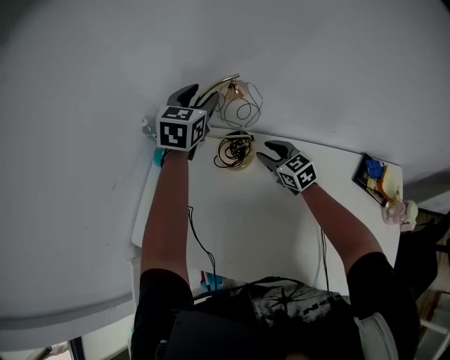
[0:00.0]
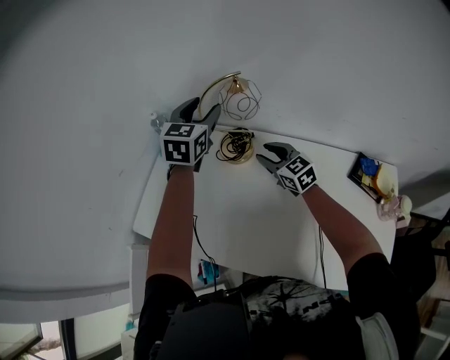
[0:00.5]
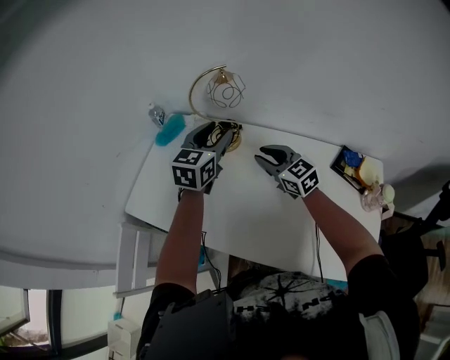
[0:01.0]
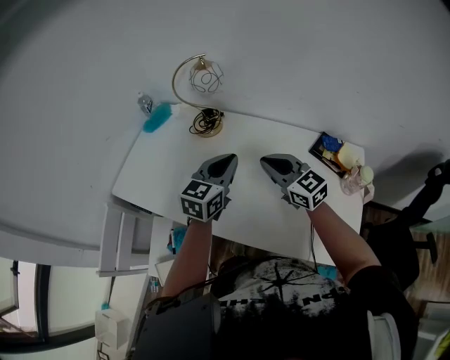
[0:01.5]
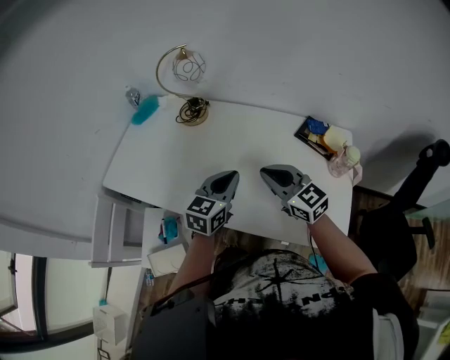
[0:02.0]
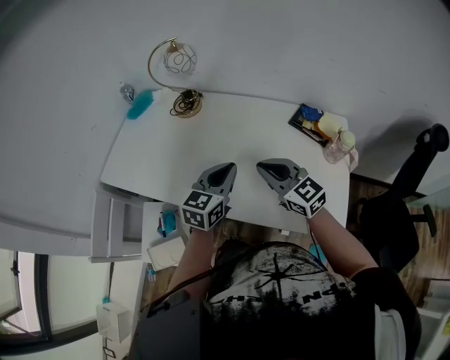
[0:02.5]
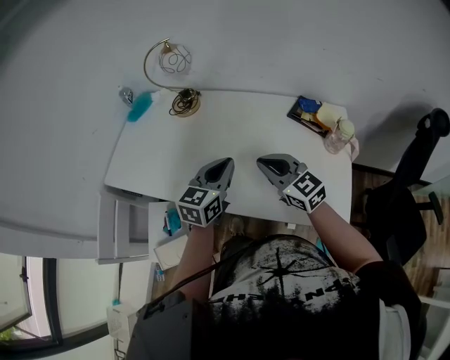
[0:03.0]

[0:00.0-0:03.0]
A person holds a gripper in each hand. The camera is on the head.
0:00.0 to 0:01.5: The left gripper heads backward, covering approximately 40 cm, turns by some 20 degrees, and closes up; the right gripper shifts about 30 cm backward and upward, and closes.
0:01.5 to 0:03.0: Both grippers move backward and to the right, roughly 15 cm.

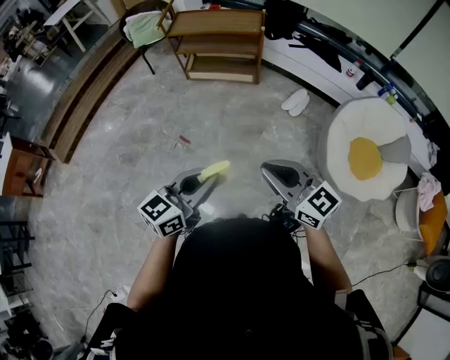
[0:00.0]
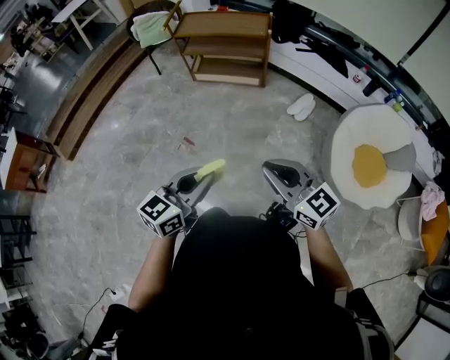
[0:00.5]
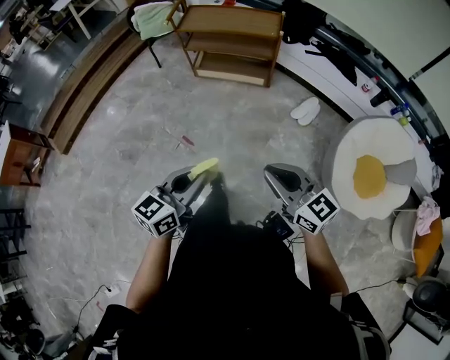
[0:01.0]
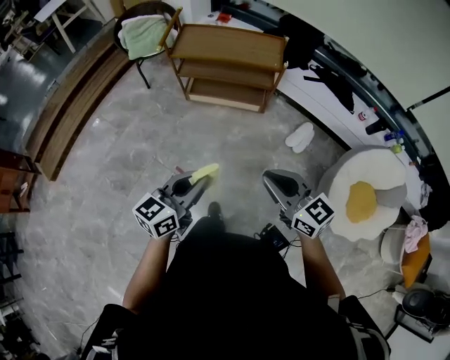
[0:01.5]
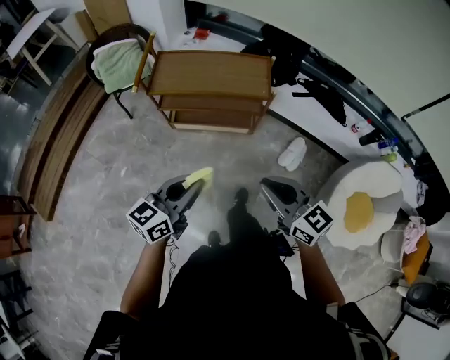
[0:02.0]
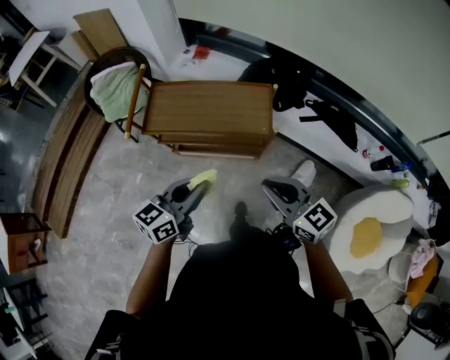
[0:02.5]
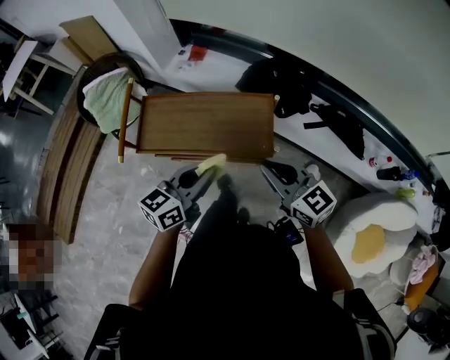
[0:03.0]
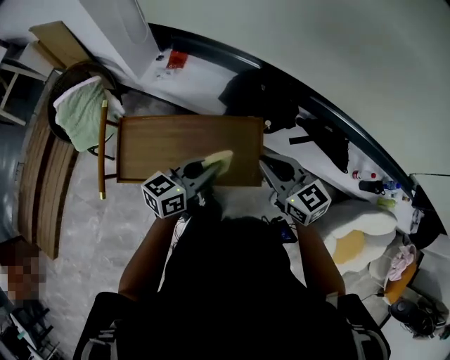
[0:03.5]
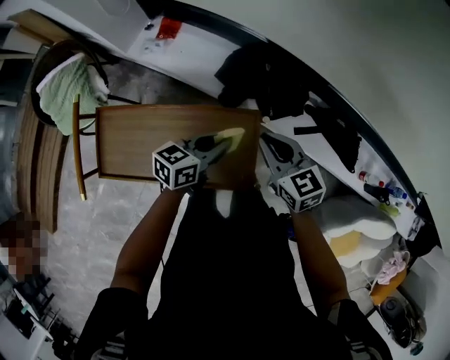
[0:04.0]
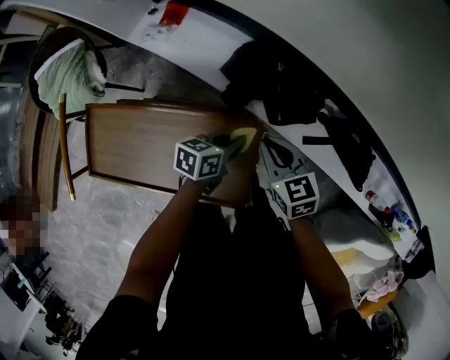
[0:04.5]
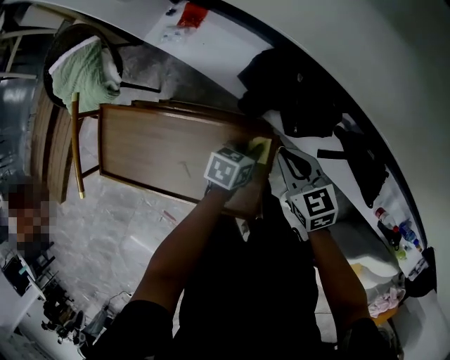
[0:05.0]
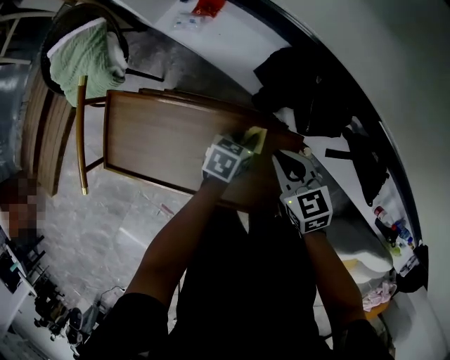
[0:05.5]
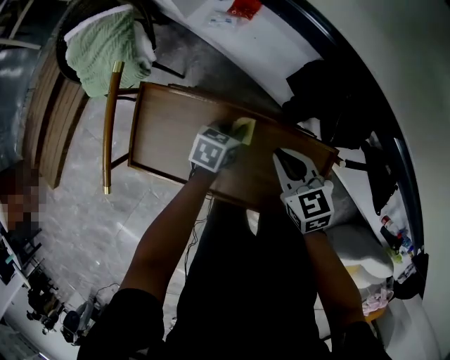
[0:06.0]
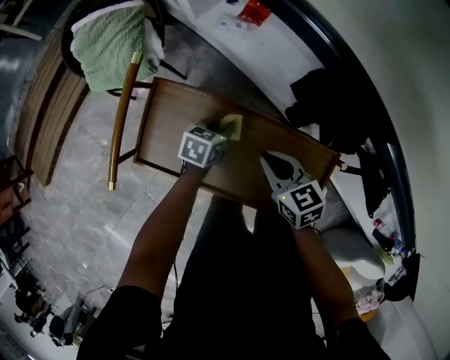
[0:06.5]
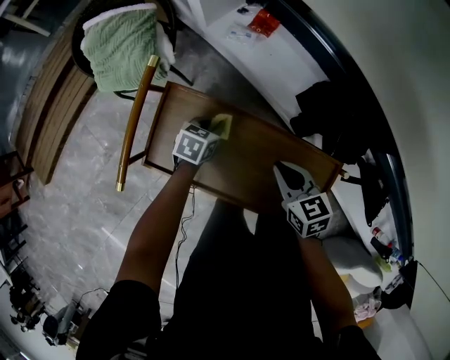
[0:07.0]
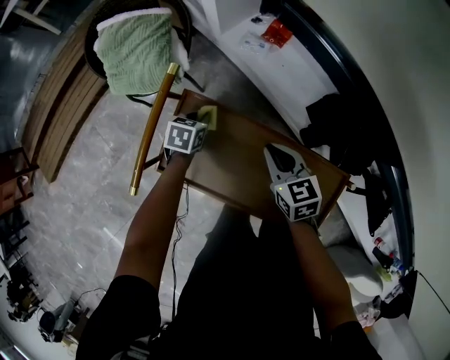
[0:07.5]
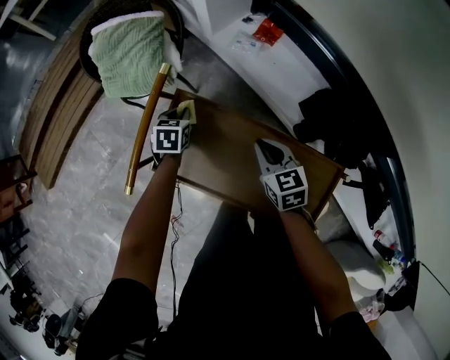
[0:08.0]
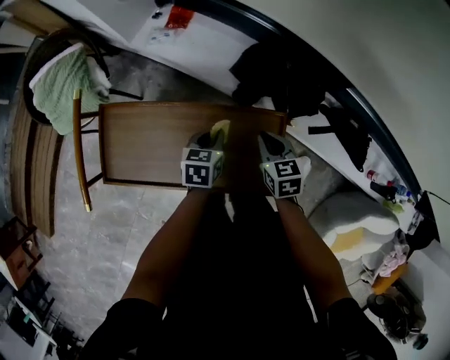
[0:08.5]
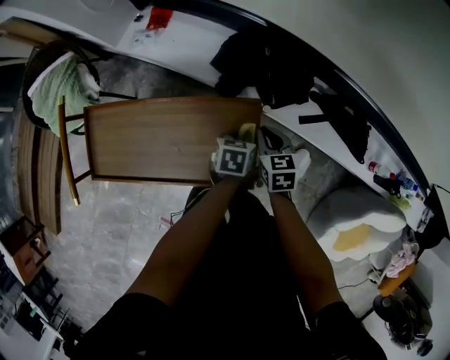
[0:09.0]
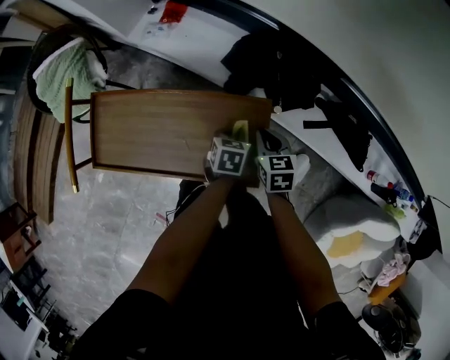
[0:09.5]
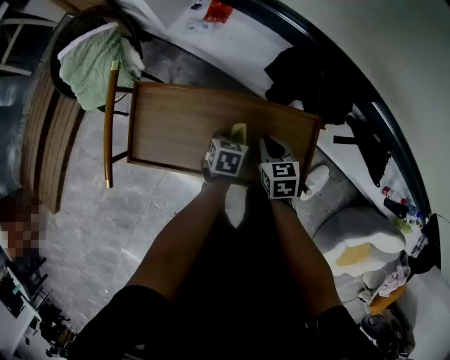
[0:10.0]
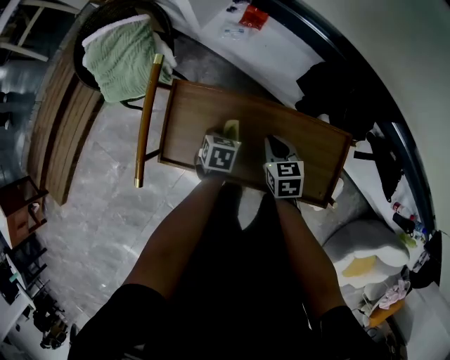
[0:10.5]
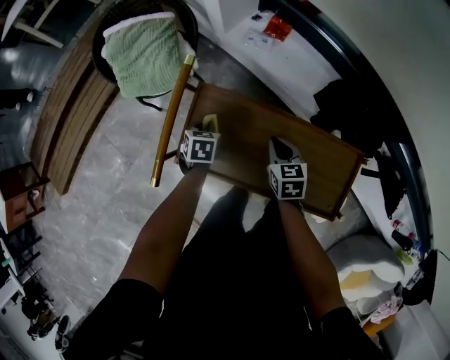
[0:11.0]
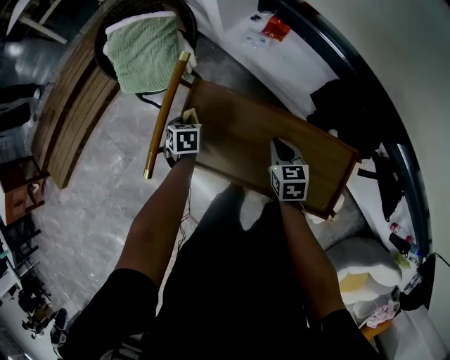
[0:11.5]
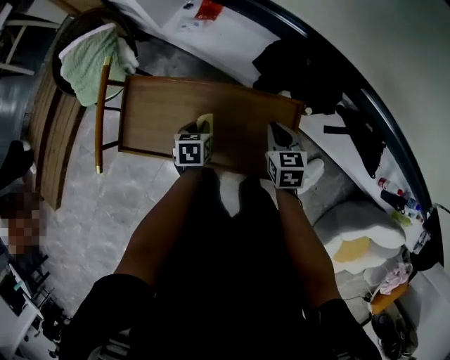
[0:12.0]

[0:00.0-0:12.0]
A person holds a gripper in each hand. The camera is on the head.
0:00.0 to 0:02.0: The two grippers travel together, forward, approximately 50 cm.
0:02.0 to 0:04.0: Both grippers are carried forward, about 60 cm. The left gripper turns by about 20 degrees.
0:04.0 to 0:06.0: Both grippers travel together to the left and downward, about 25 cm. The left gripper swivels approximately 30 degrees.
0:06.0 to 0:08.0: The left gripper goes roughly 30 cm to the left, and swivels about 30 degrees, while the right gripper moves to the left, roughly 15 cm.
0:08.0 to 0:10.0: The left gripper turns by some 20 degrees. The right gripper swivels approximately 20 degrees.

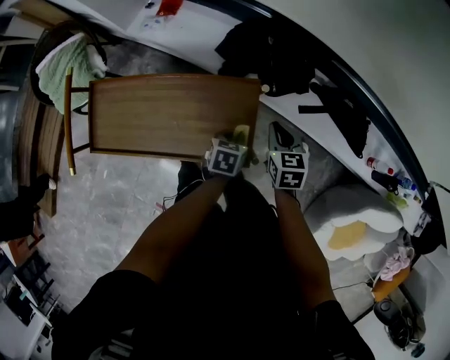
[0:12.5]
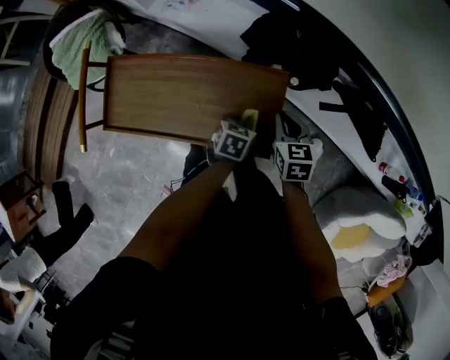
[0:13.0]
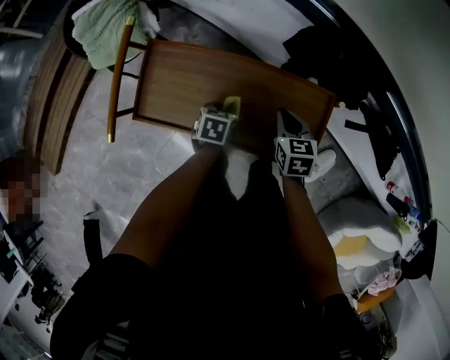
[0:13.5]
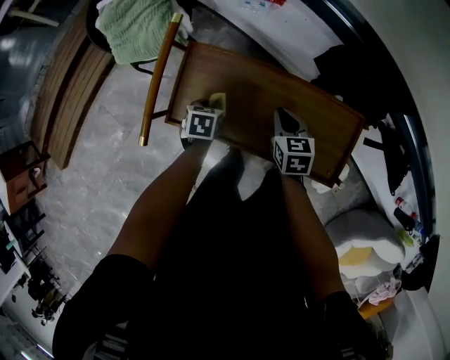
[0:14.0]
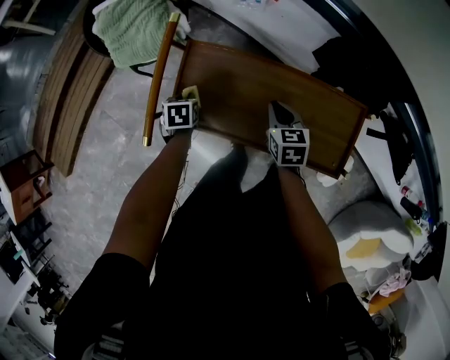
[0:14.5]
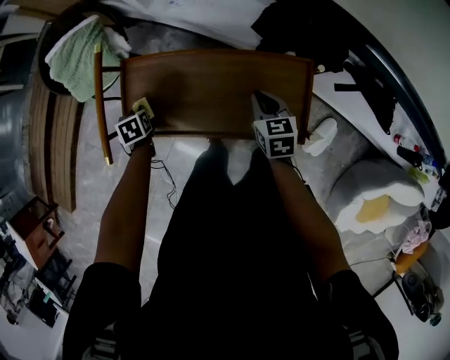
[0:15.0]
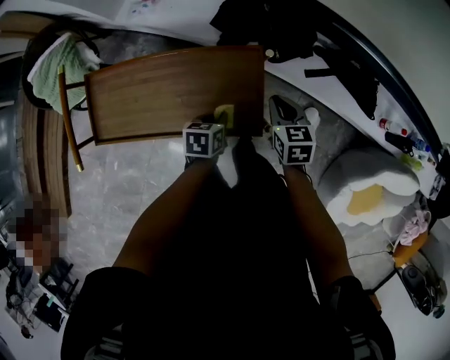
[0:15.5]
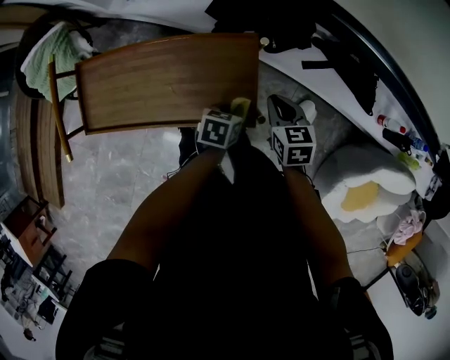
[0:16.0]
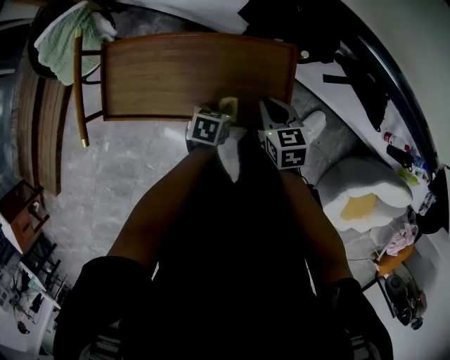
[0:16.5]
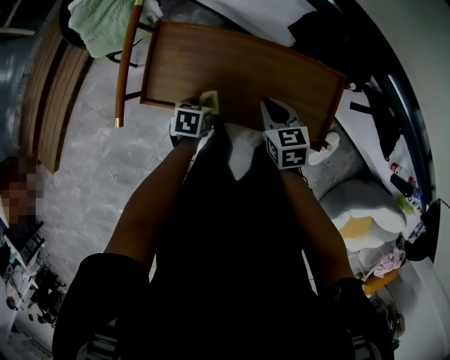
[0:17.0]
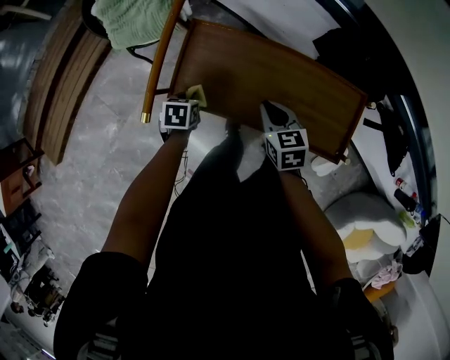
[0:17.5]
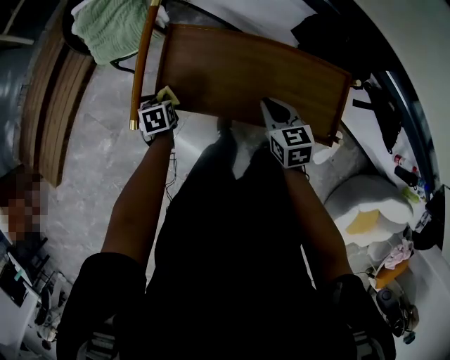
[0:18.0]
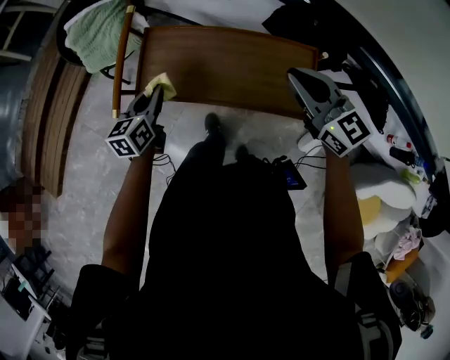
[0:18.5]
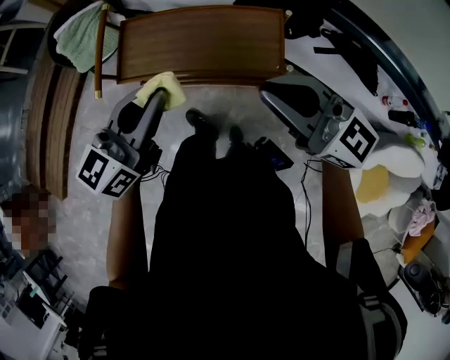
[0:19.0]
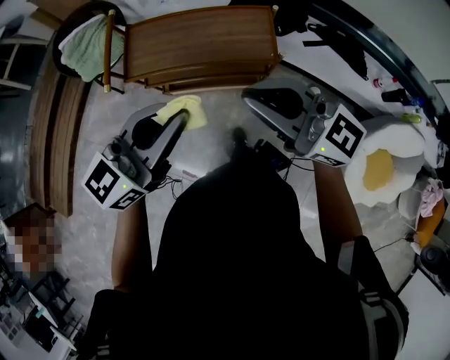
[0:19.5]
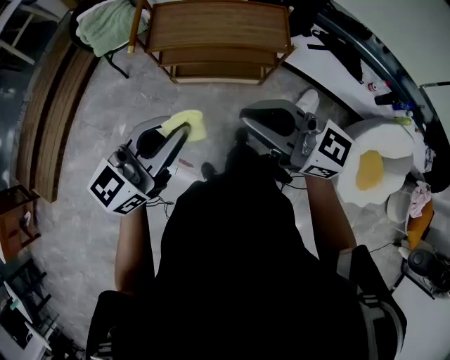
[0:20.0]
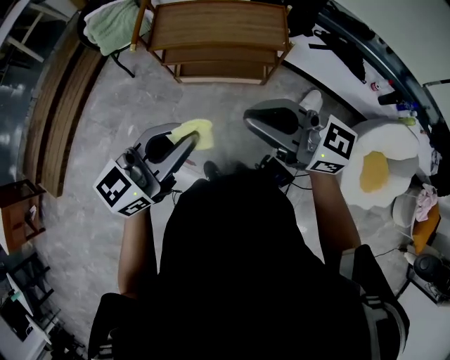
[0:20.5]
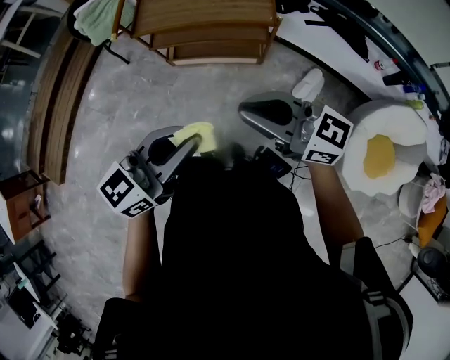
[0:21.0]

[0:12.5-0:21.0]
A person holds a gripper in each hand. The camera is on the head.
0:12.5 to 0:14.5: The right gripper moves some 35 cm, while the left gripper shifts by about 50 cm, and changes its angle by approximately 30 degrees.
0:14.5 to 0:16.5: The left gripper shifts by about 40 cm, and rotates some 30 degrees.
0:16.5 to 0:19.0: Both grippers travel together upward, roughly 35 cm. The left gripper tilts its fingers roughly 50 degrees upward, while the right gripper angles its fingers upward, by approximately 50 degrees.
0:19.0 to 0:21.0: Both grippers move backward, approximately 30 cm.

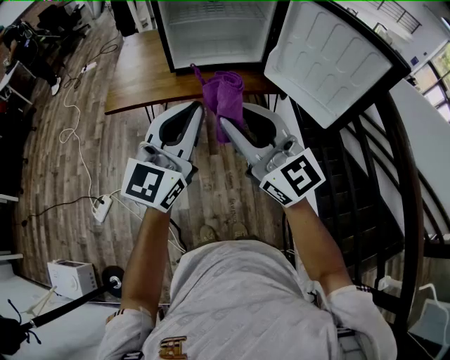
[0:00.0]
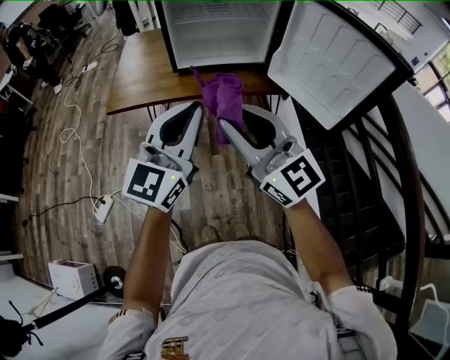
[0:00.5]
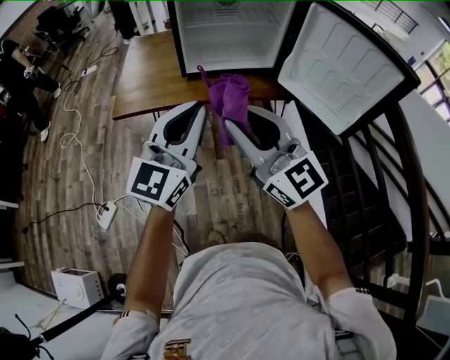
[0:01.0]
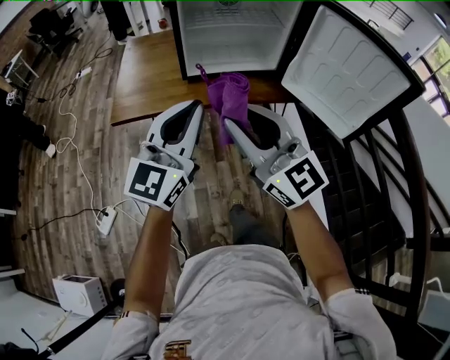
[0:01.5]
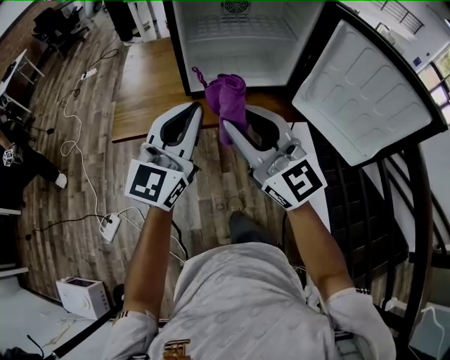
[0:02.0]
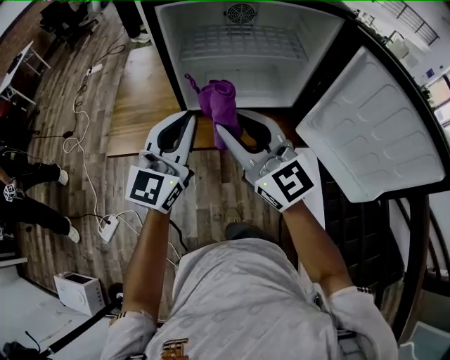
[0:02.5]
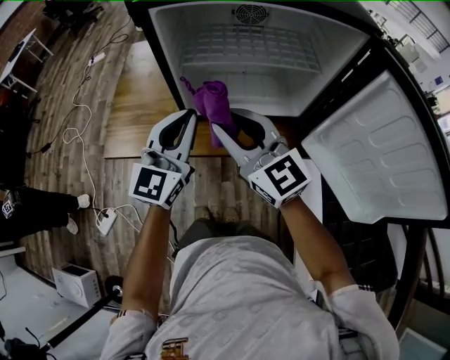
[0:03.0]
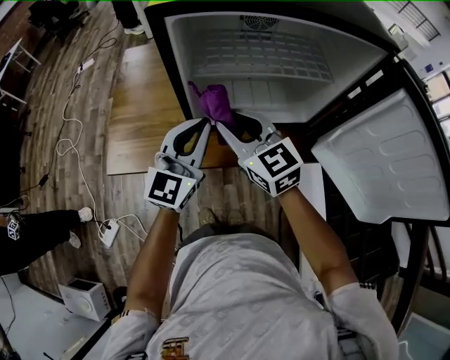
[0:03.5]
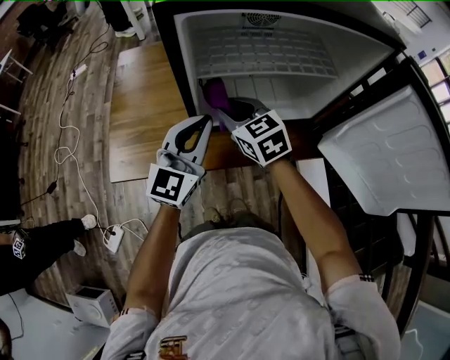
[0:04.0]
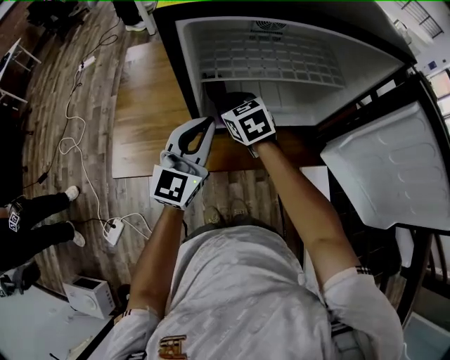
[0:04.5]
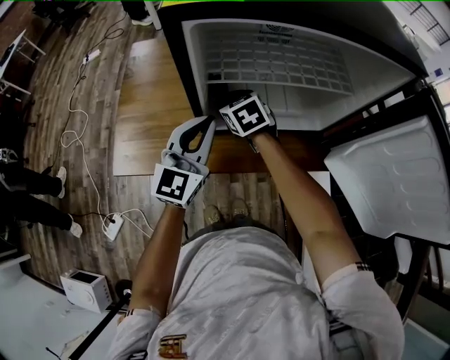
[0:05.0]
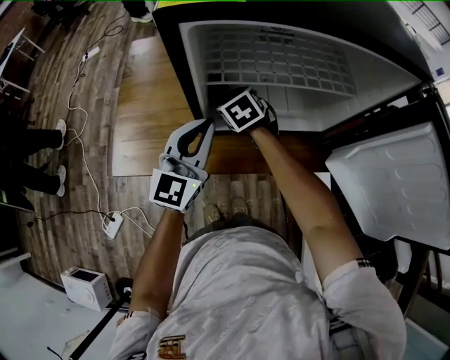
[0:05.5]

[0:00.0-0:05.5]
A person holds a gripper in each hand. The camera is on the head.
0:00.0 to 0:02.0: The two grippers go roughly 20 cm forward and to the left.
0:02.0 to 0:03.5: The two grippers go some 25 cm forward and downward. The right gripper turns by about 30 degrees.
0:03.5 to 0:05.5: The left gripper shifts by approximately 5 cm. Meanwhile the right gripper shifts about 20 cm downward and forward, and tips its fingers downward by approximately 40 degrees.
